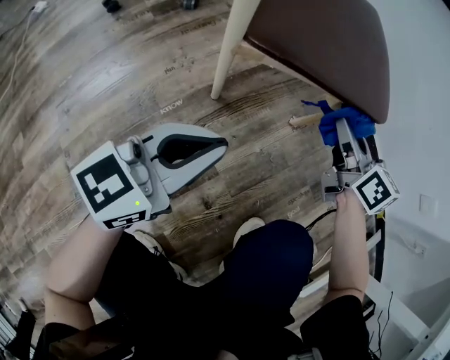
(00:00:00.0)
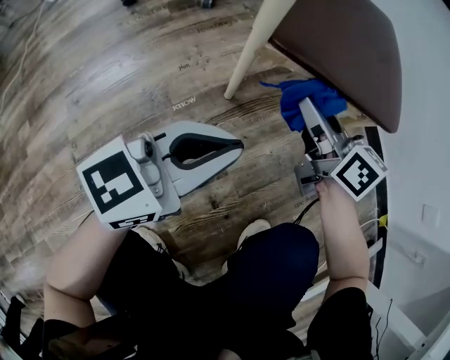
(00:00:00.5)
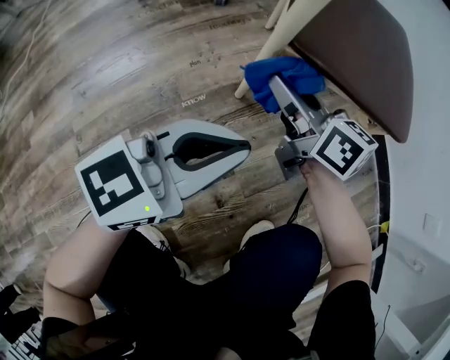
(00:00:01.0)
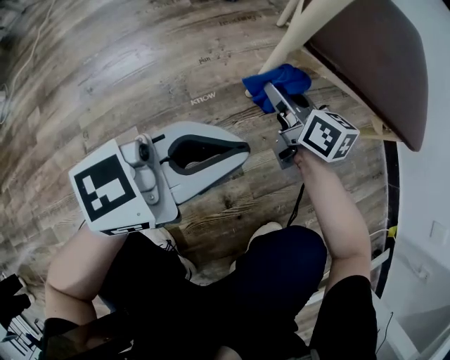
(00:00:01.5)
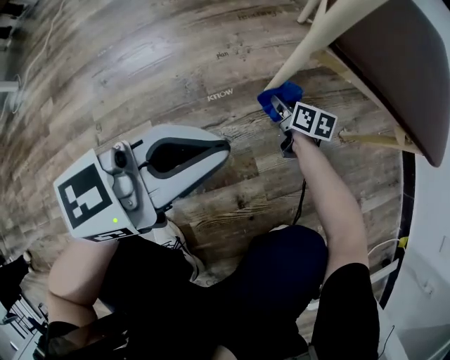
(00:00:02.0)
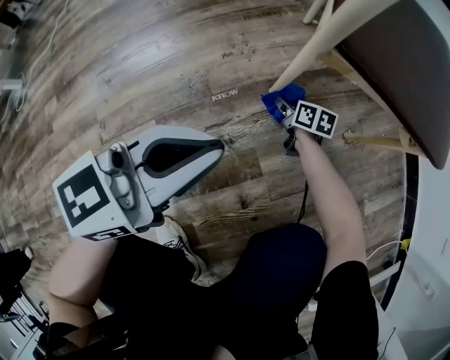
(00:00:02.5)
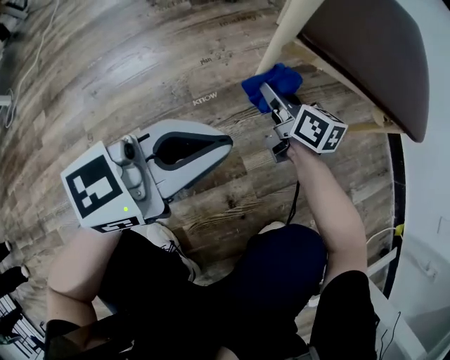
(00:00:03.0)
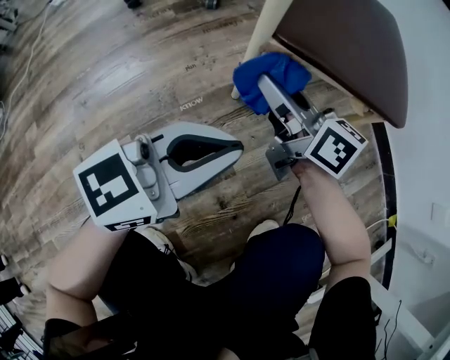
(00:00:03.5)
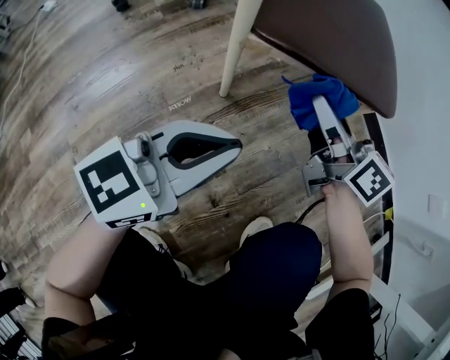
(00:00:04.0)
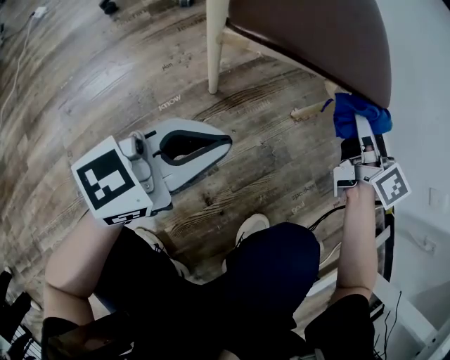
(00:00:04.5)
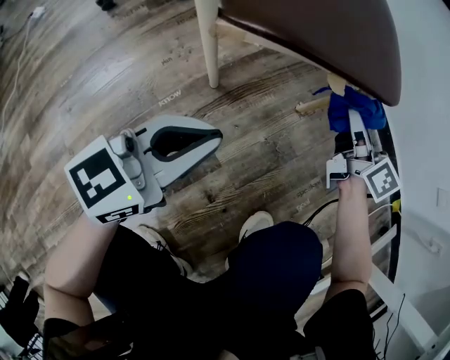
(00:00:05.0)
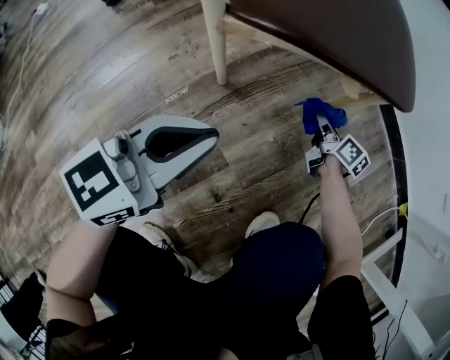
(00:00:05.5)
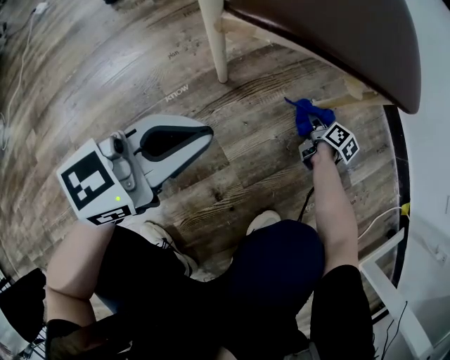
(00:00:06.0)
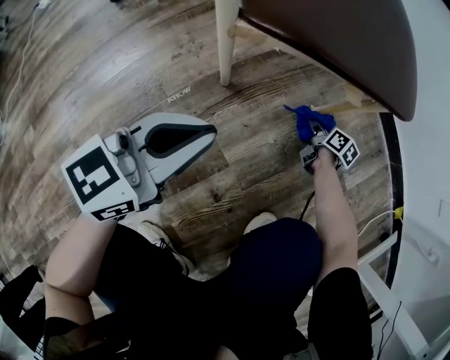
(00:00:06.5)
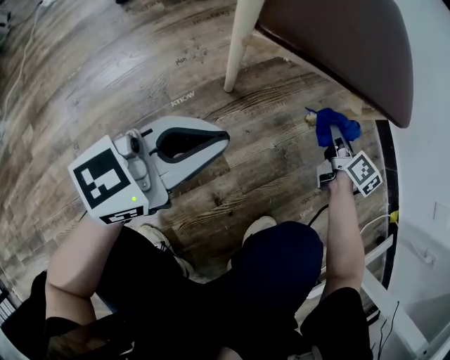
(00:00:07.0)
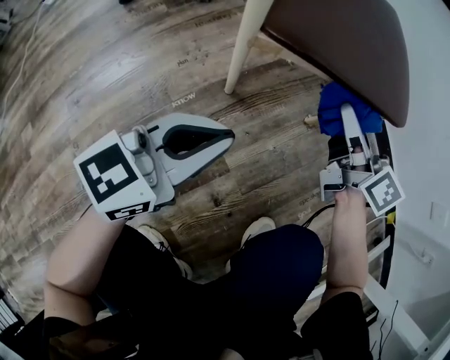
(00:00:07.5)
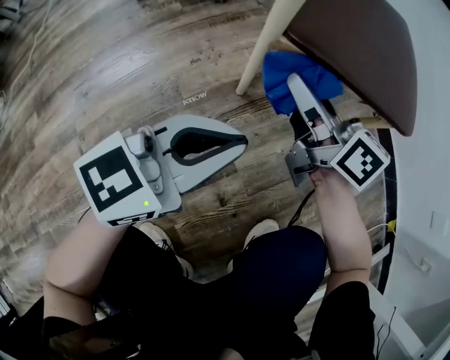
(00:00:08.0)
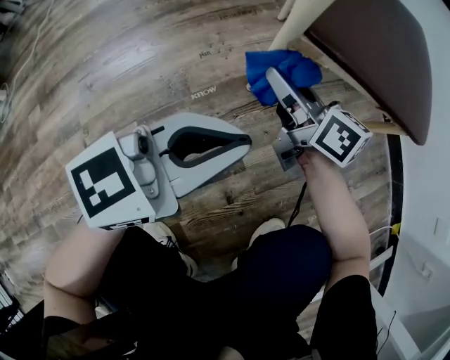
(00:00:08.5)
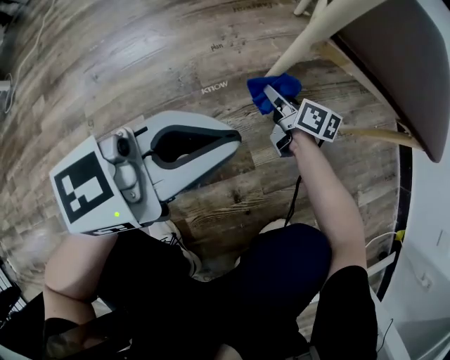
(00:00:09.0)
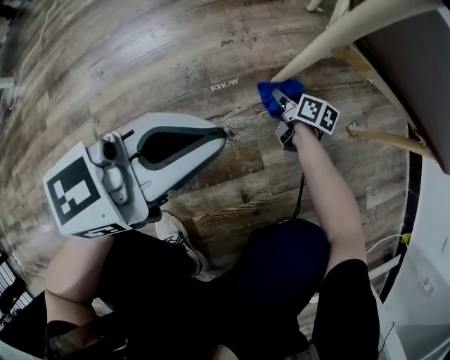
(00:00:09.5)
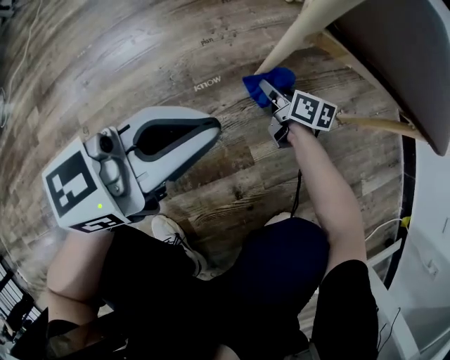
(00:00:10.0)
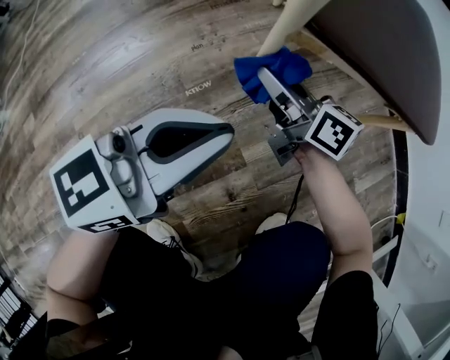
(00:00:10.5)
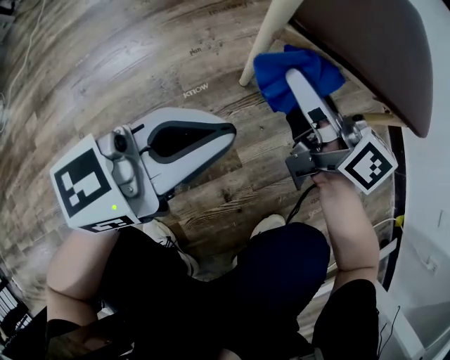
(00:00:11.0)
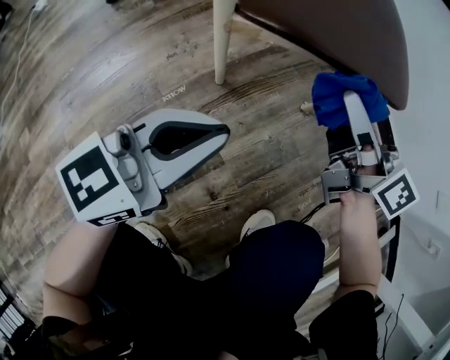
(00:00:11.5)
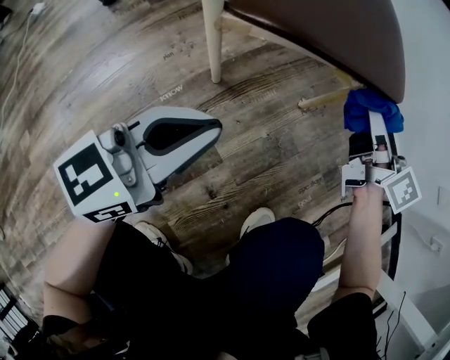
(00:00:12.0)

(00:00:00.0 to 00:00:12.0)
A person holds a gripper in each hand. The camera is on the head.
00:00:00.0 - 00:00:02.0: The right gripper shifts approximately 40 cm downward and to the left, and changes its angle by approximately 30 degrees. The left gripper moves to the left, roughly 10 cm.
00:00:02.0 - 00:00:04.0: The right gripper is displaced upward by some 30 cm, and points its fingers about 30 degrees further upward. Meanwhile the left gripper moves to the right, approximately 10 cm.
00:00:04.0 - 00:00:06.0: The left gripper heads downward, covering roughly 5 cm. The right gripper moves downward and to the right, roughly 40 cm, and tilts its fingers some 40 degrees downward.
00:00:06.0 - 00:00:08.0: The right gripper shifts some 40 cm upward and to the left, and angles its fingers upward, by about 40 degrees, while the left gripper ends up approximately 5 cm from where it was.
00:00:08.0 - 00:00:10.0: The left gripper travels to the left by roughly 10 cm; the right gripper goes some 30 cm downward, and turns by approximately 30 degrees.
00:00:10.0 - 00:00:12.0: The left gripper is displaced to the right by approximately 10 cm; the right gripper heads to the right and upward, covering approximately 40 cm, and changes its angle by roughly 40 degrees.

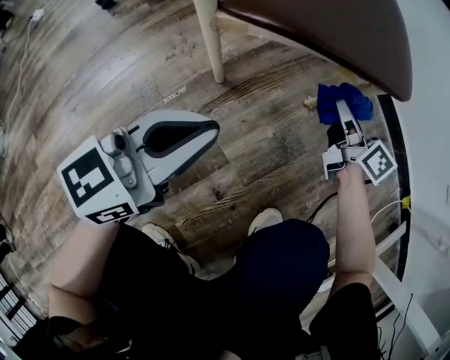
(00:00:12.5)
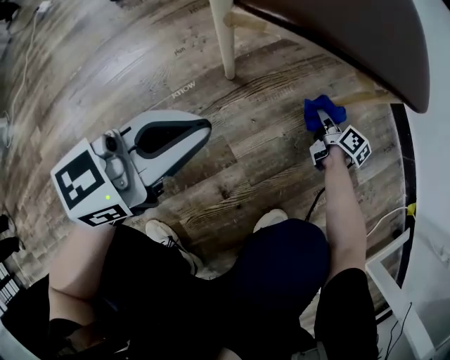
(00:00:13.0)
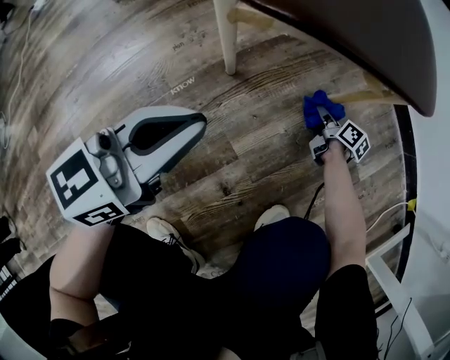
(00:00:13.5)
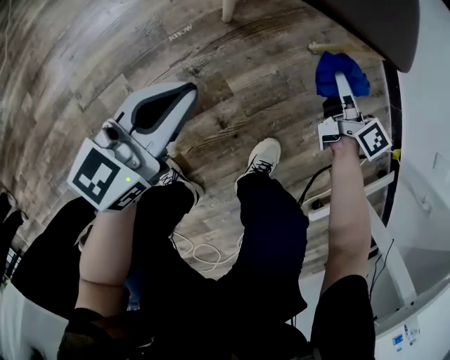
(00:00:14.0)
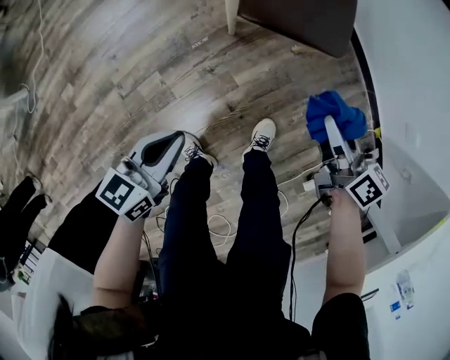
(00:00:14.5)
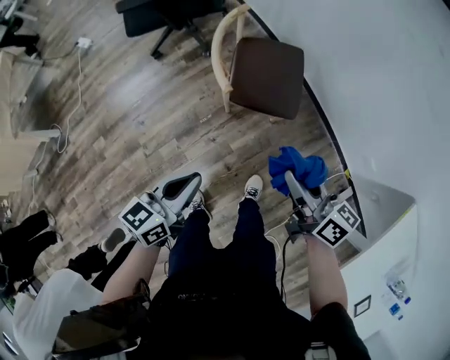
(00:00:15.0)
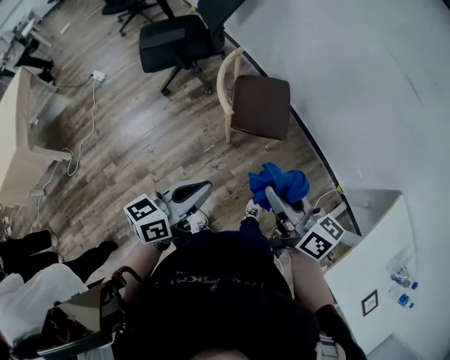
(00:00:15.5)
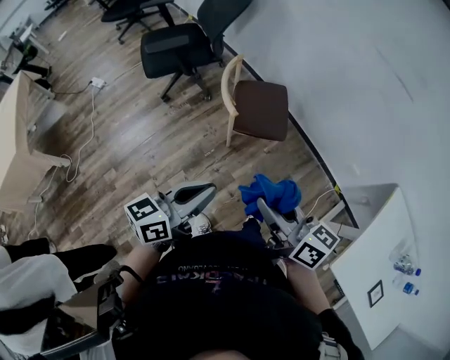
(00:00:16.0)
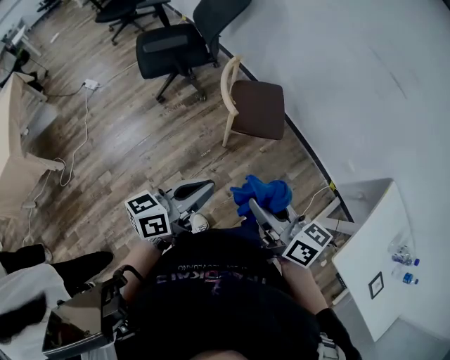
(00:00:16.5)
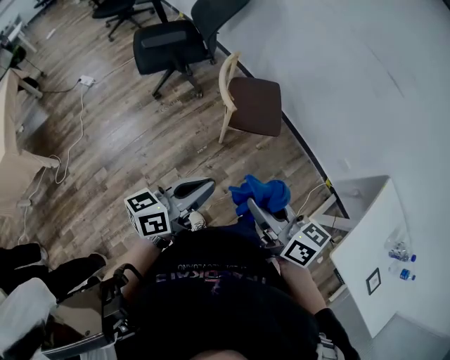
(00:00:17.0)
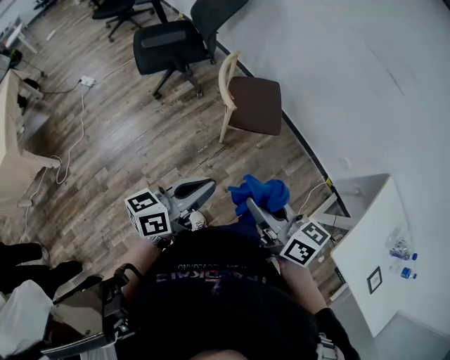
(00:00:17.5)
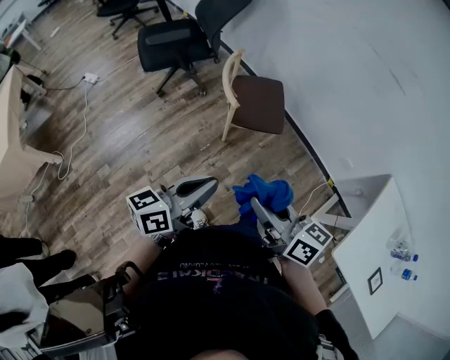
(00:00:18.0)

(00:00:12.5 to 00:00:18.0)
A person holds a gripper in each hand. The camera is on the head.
00:00:12.5 - 00:00:14.5: Both grippers travel together upward and backward, approximately 30 cm. The left gripper turns by some 30 degrees.
00:00:14.5 - 00:00:16.0: The left gripper is displaced upward by approximately 40 cm, and changes its angle by about 20 degrees. The right gripper travels upward and backward by about 50 cm, and rotates about 20 degrees.
00:00:16.0 - 00:00:18.0: The right gripper moves approximately 5 cm.

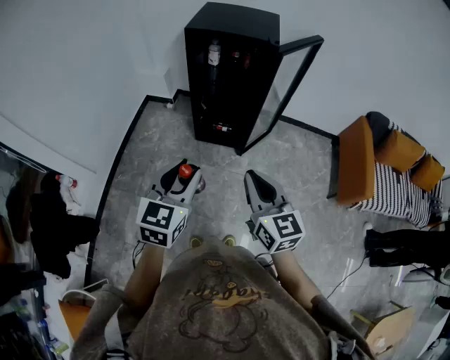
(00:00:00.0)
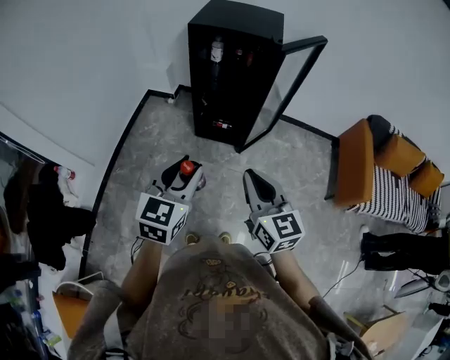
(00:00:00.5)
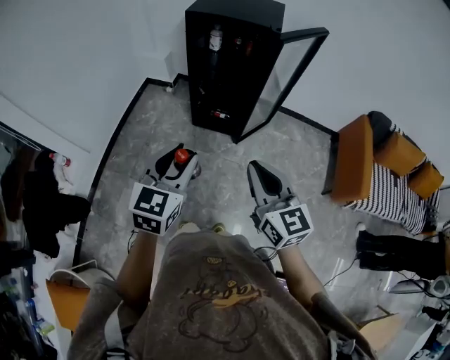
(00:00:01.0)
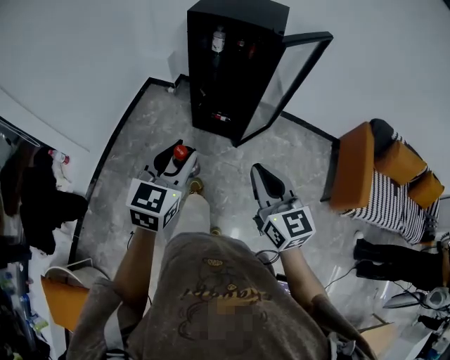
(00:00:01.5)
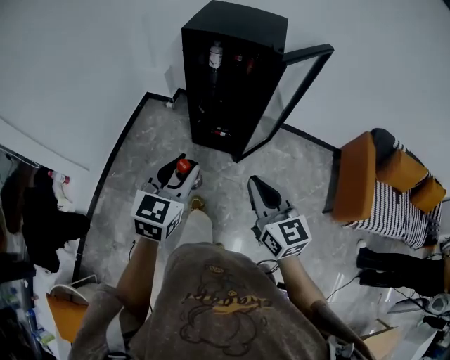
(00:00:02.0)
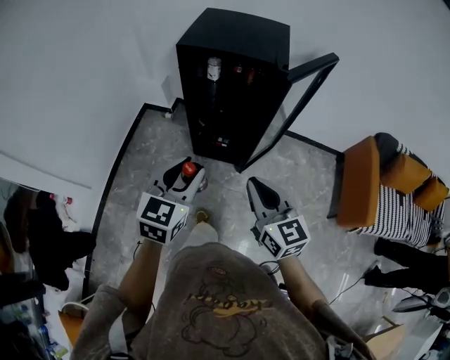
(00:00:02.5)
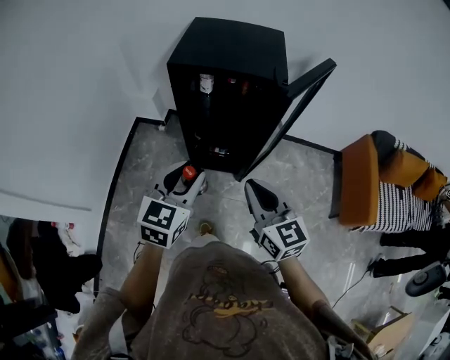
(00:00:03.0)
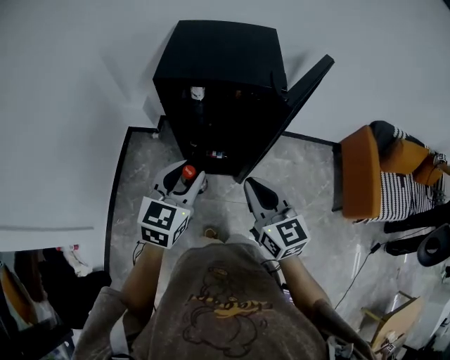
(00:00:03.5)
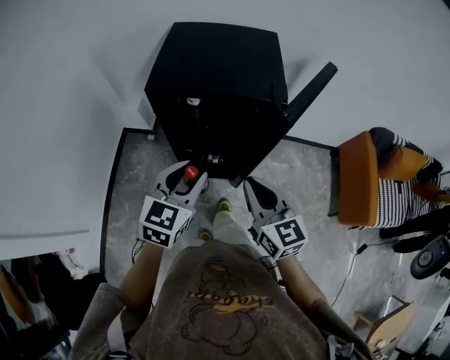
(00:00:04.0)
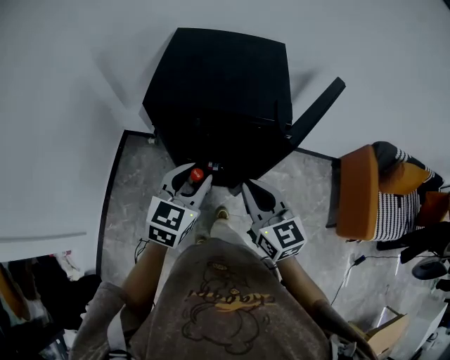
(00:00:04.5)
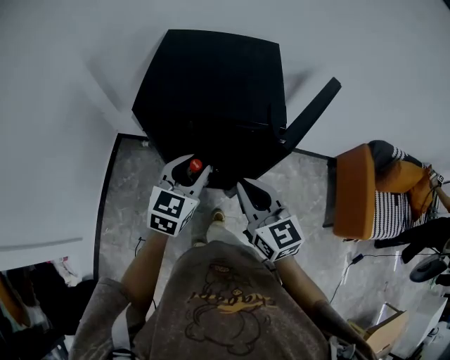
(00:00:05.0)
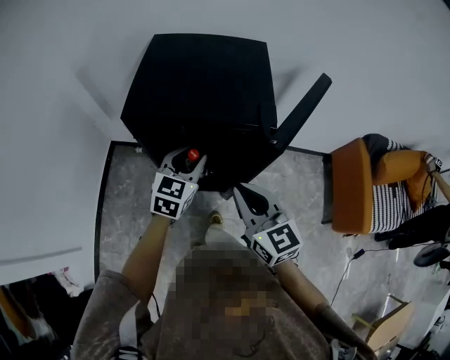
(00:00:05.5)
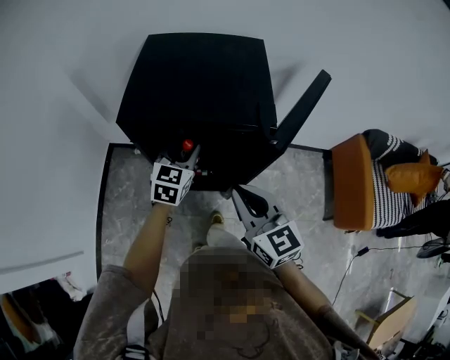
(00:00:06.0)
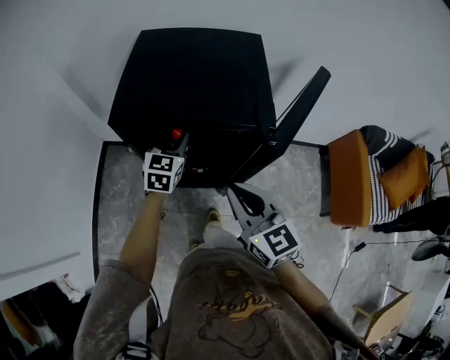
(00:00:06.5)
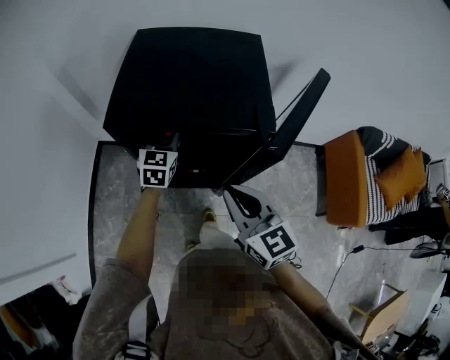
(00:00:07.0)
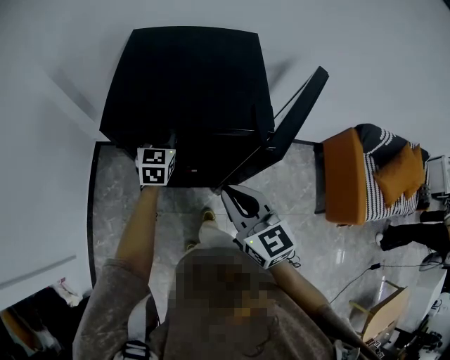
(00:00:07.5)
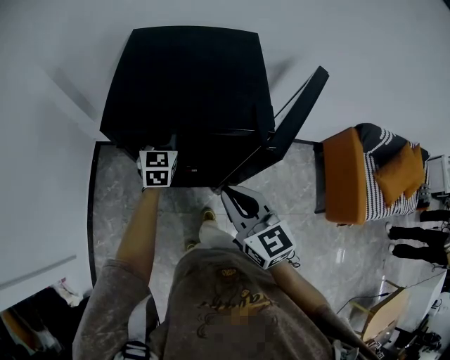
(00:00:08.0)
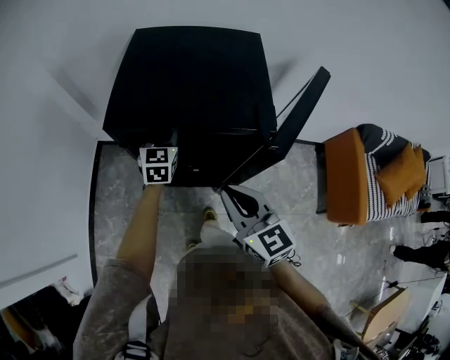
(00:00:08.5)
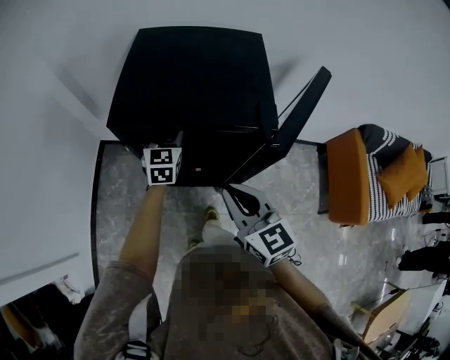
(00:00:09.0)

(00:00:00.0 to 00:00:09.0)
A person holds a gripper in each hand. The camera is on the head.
00:00:00.0 - 00:00:02.0: The left gripper shifts roughly 10 cm forward. Meanwhile the right gripper travels forward and to the right by some 10 cm.
00:00:02.0 - 00:00:04.5: The grippers both shift forward by some 30 cm.
00:00:04.5 - 00:00:07.0: The left gripper goes roughly 25 cm forward and downward.
00:00:07.0 - 00:00:09.0: The left gripper opens up.
